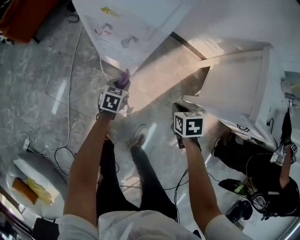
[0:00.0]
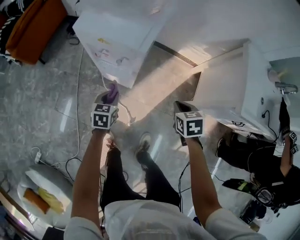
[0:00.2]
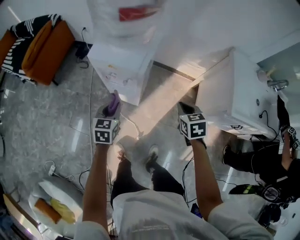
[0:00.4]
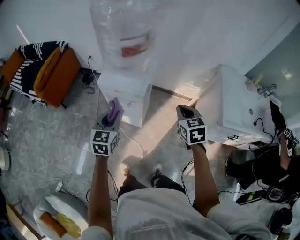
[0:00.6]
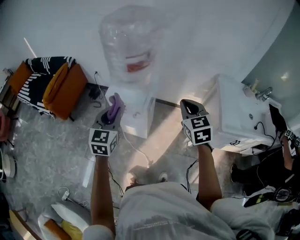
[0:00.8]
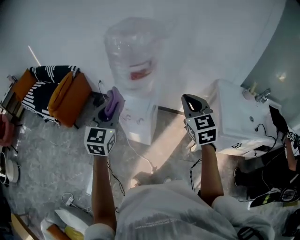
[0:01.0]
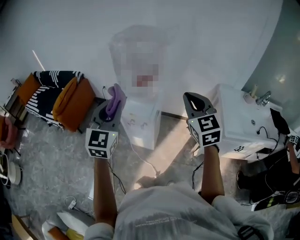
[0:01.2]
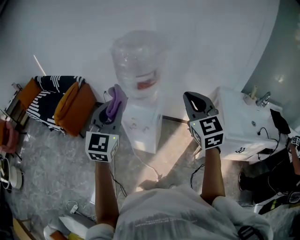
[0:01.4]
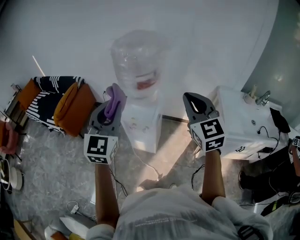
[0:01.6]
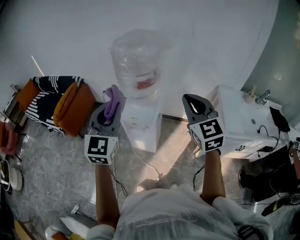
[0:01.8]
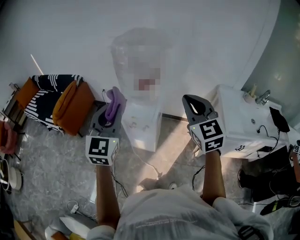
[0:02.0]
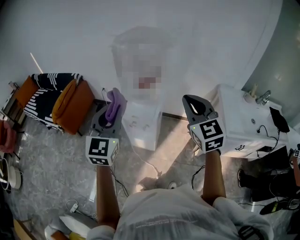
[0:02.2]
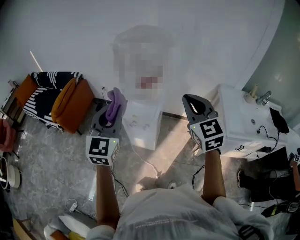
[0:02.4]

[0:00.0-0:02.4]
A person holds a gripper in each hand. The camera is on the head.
0:00.0 to 0:01.2: The grippers both shift upward by some 70 cm. The right gripper tips its fingers upward by approximately 60 degrees, while the left gripper tips its fingers upward by about 50 degrees.
0:01.2 to 0:02.4: The grippers move only a little.

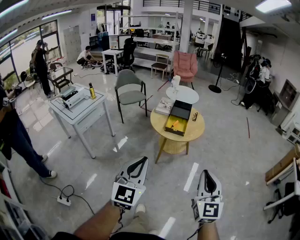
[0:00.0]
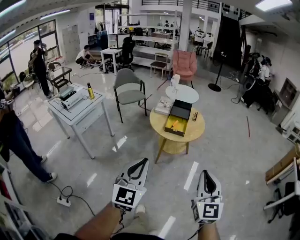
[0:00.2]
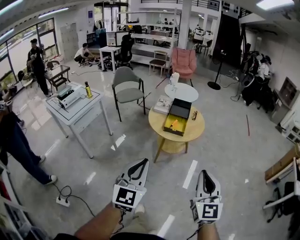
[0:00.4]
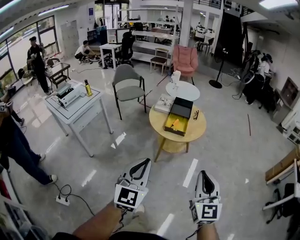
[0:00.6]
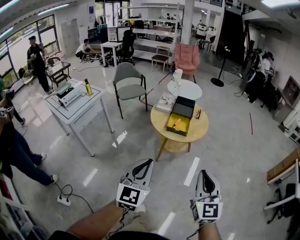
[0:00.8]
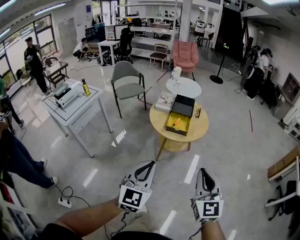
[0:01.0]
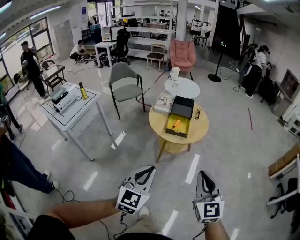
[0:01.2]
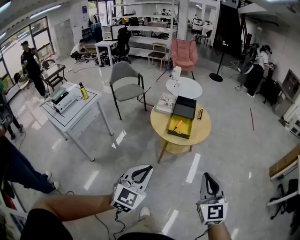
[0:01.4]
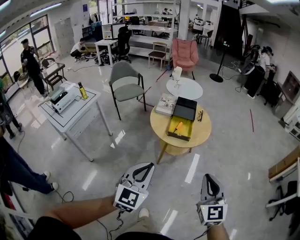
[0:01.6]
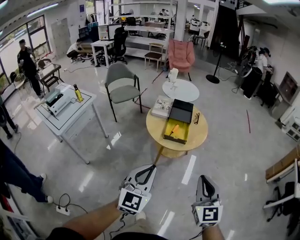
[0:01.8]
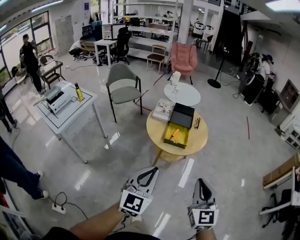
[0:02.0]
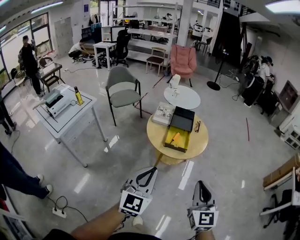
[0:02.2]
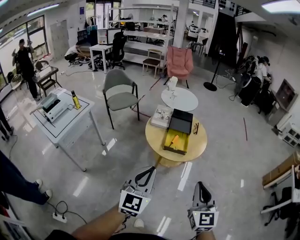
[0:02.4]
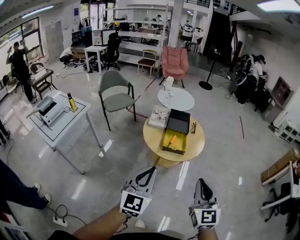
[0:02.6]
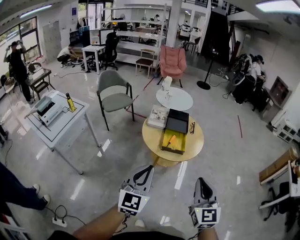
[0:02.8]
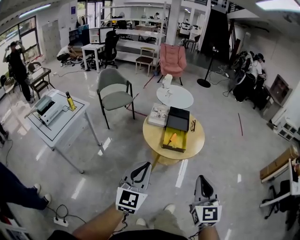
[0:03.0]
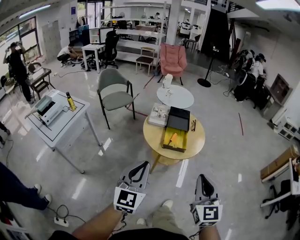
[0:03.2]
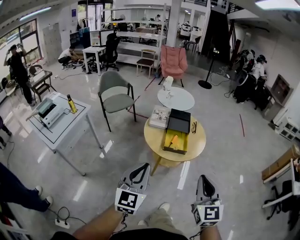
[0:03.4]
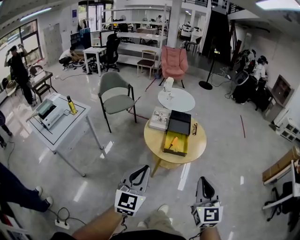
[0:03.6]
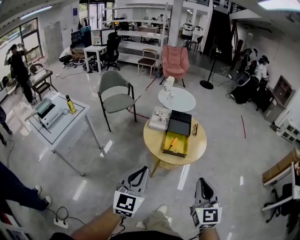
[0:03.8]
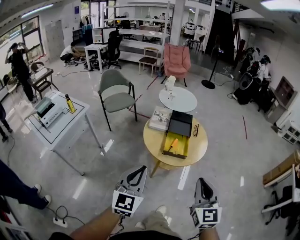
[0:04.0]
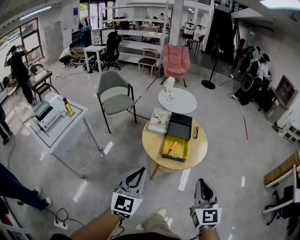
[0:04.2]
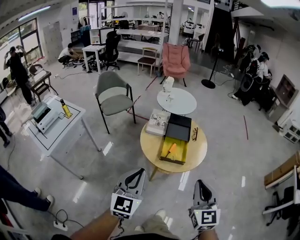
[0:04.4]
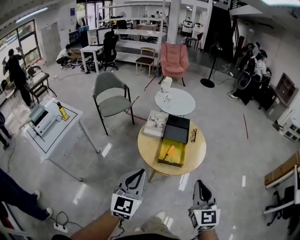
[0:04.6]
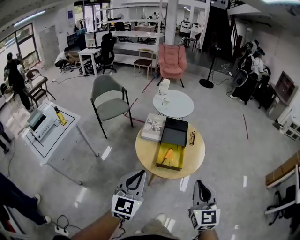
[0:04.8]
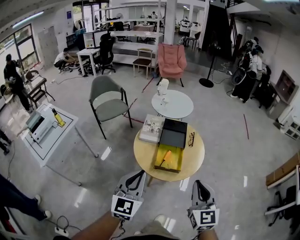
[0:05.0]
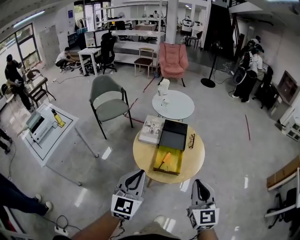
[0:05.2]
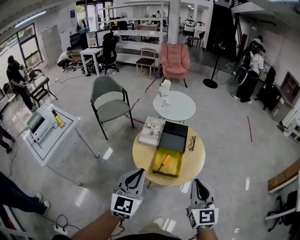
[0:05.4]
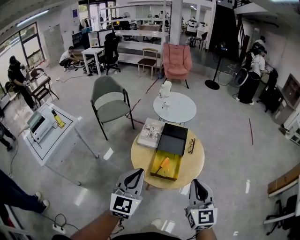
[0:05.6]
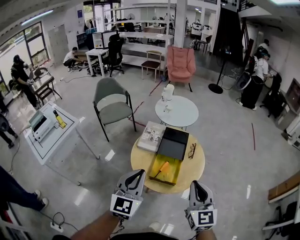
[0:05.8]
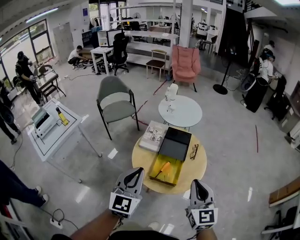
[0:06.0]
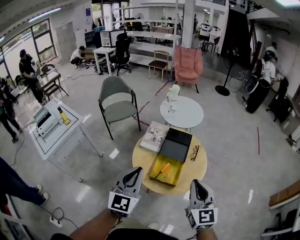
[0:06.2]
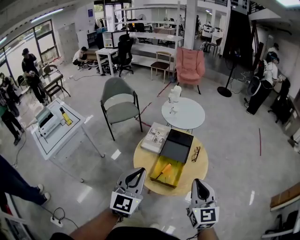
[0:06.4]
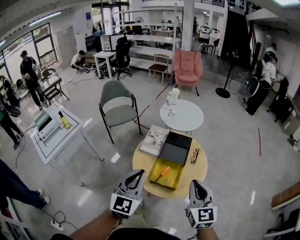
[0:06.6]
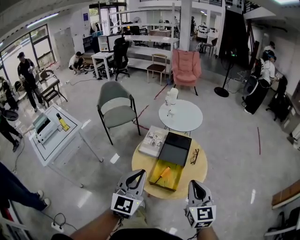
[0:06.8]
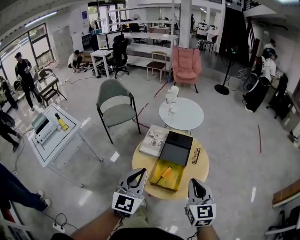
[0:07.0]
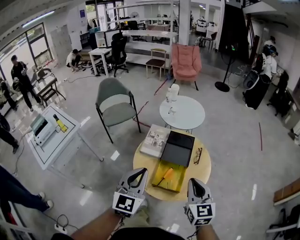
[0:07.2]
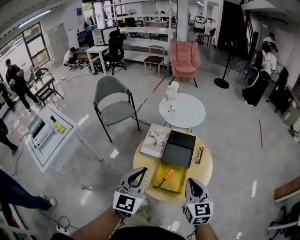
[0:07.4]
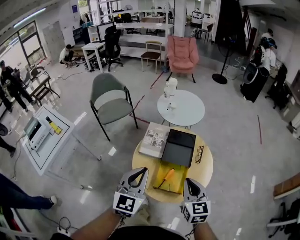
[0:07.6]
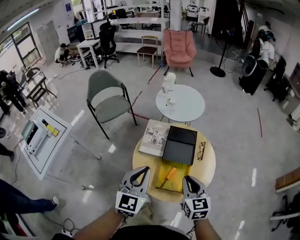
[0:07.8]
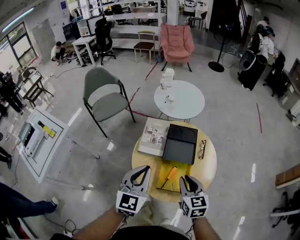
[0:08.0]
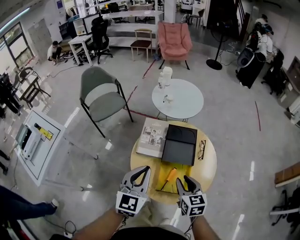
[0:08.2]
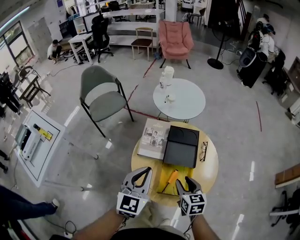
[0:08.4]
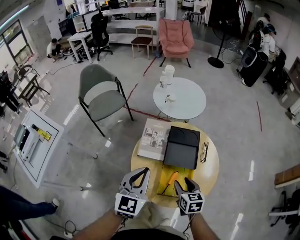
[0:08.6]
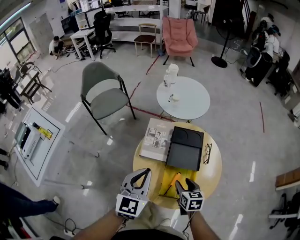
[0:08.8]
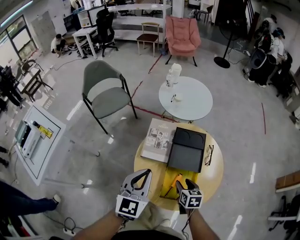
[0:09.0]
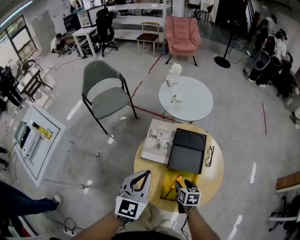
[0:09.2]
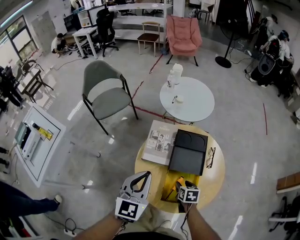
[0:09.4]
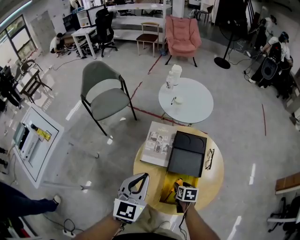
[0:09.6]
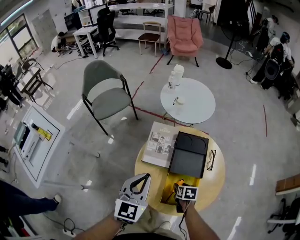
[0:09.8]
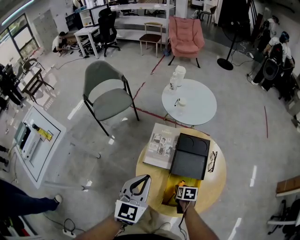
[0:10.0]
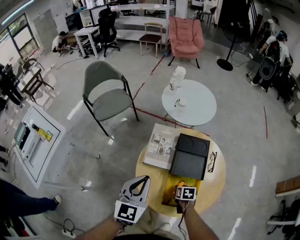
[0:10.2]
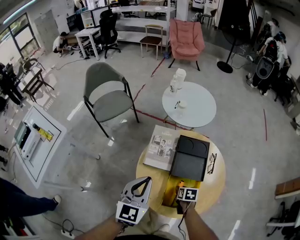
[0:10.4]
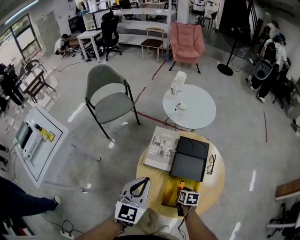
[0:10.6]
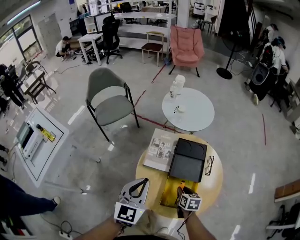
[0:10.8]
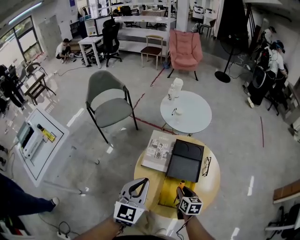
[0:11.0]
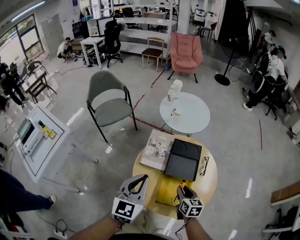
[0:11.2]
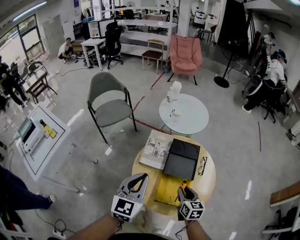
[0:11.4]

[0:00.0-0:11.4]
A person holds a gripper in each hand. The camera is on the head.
0:00.0 to 0:01.4: The left gripper heads forward and downward, covering about 15 cm. Meanwhile the right gripper moves forward, some 15 cm.
0:01.4 to 0:02.8: The two grippers go some 10 cm forward and to the left.
0:02.8 to 0:04.2: The grippers both shift forward by roughly 10 cm.
0:04.2 to 0:05.6: The left gripper shifts some 20 cm forward and to the right. Meanwhile the right gripper goes about 20 cm forward.
0:05.6 to 0:07.2: The two grippers go about 10 cm forward.
0:07.2 to 0:08.6: The left gripper heads forward and downward, covering about 15 cm. The right gripper shifts about 25 cm downward and forward, rotates roughly 30 degrees, and opens up.
0:08.6 to 0:10.0: The right gripper moves downward, approximately 15 cm, and rotates about 30 degrees; the left gripper shifts by approximately 5 cm.
0:10.0 to 0:11.4: The left gripper is displaced upward and backward by some 10 cm. The right gripper heads upward, covering roughly 20 cm, and tips its fingers upward by some 30 degrees.

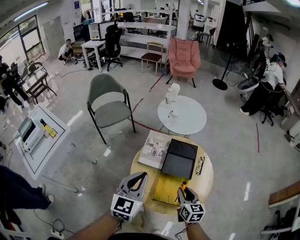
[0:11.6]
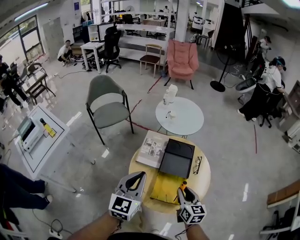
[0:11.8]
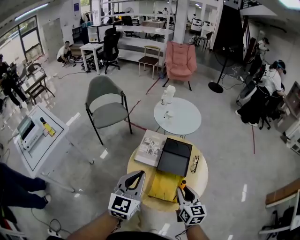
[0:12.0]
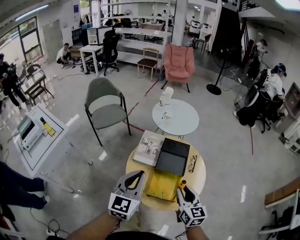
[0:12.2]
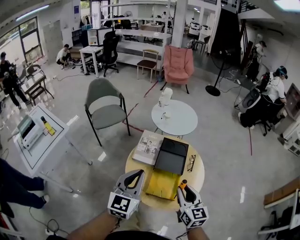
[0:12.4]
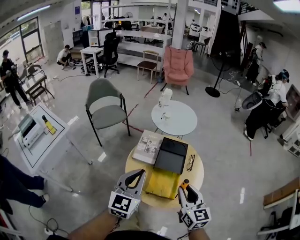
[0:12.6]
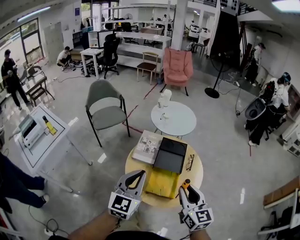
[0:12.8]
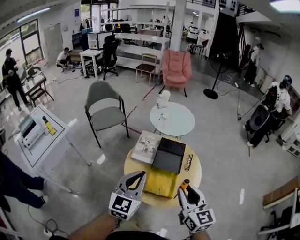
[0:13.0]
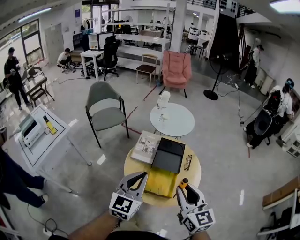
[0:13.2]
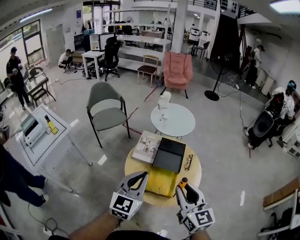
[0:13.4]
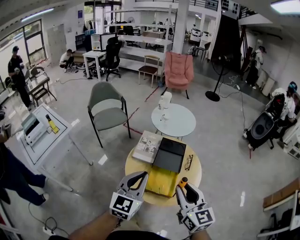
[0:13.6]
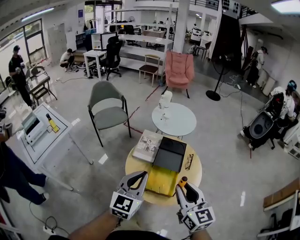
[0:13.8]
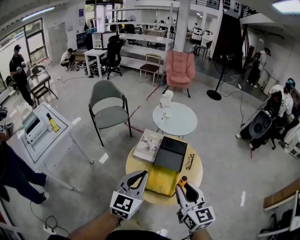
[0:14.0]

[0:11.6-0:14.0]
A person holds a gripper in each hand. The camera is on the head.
0:11.6 to 0:12.8: The right gripper goes roughly 20 cm upward and backward. The left gripper is displaced backward and upward by approximately 10 cm.
0:12.8 to 0:14.0: The right gripper ends up some 5 cm from where it was.

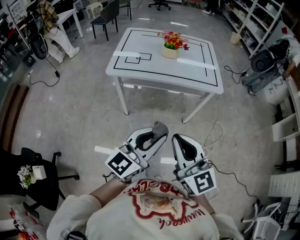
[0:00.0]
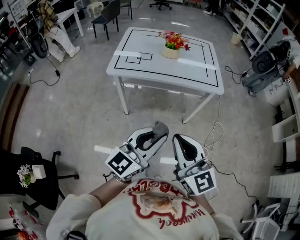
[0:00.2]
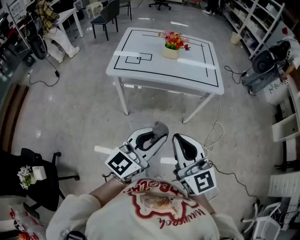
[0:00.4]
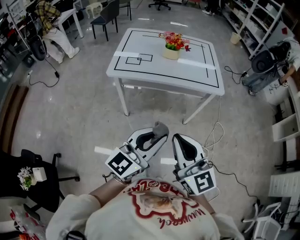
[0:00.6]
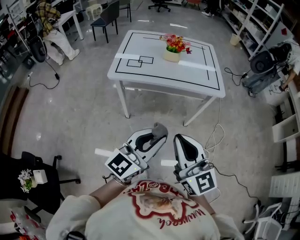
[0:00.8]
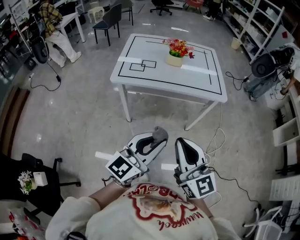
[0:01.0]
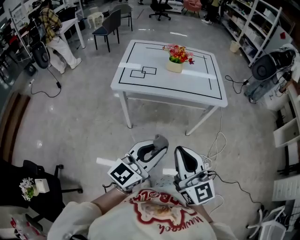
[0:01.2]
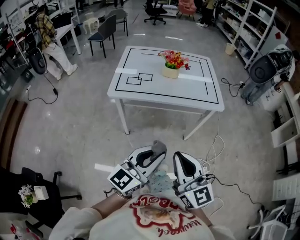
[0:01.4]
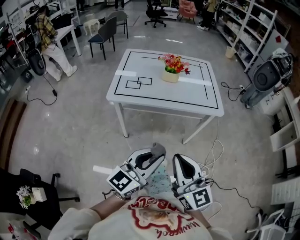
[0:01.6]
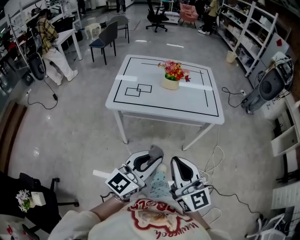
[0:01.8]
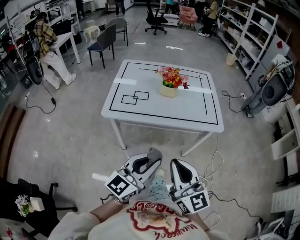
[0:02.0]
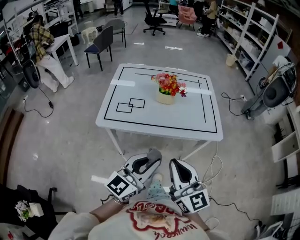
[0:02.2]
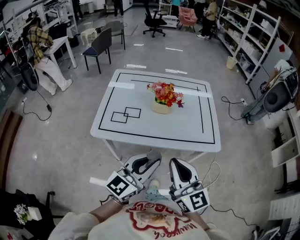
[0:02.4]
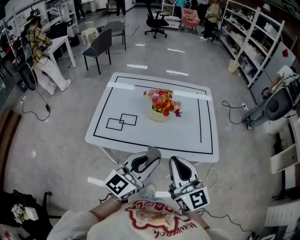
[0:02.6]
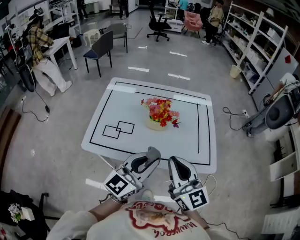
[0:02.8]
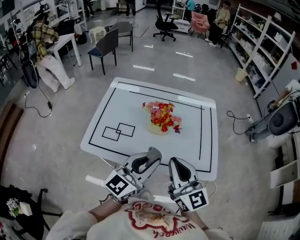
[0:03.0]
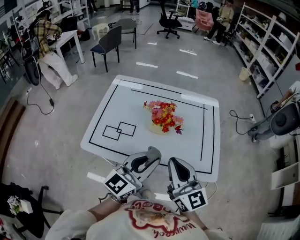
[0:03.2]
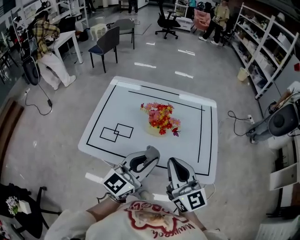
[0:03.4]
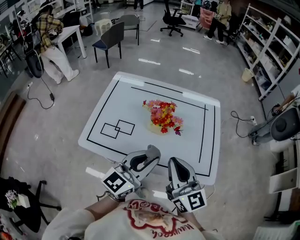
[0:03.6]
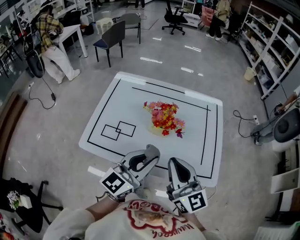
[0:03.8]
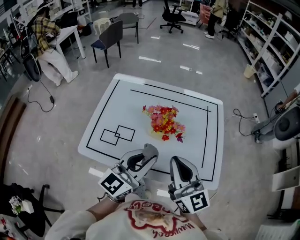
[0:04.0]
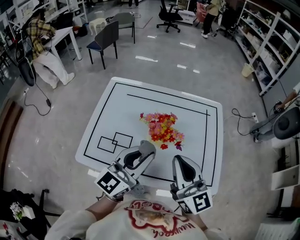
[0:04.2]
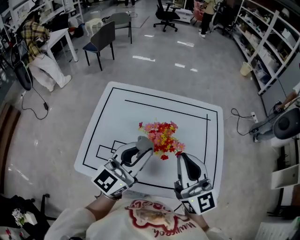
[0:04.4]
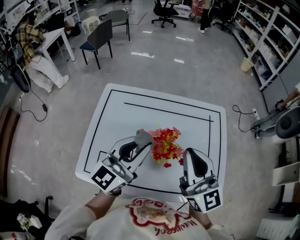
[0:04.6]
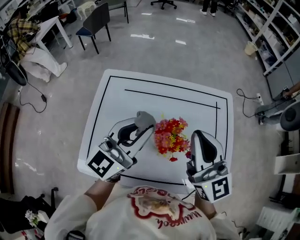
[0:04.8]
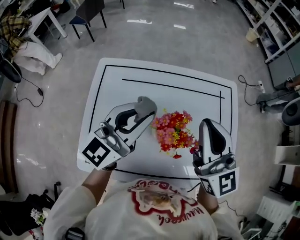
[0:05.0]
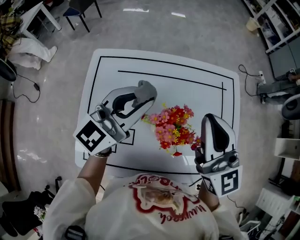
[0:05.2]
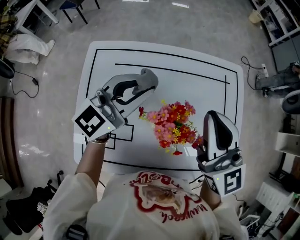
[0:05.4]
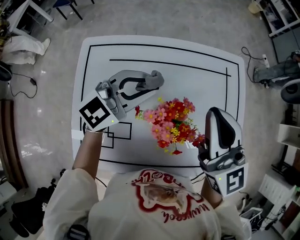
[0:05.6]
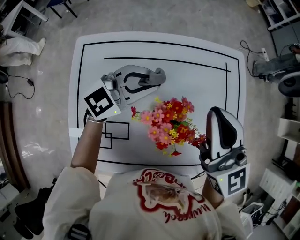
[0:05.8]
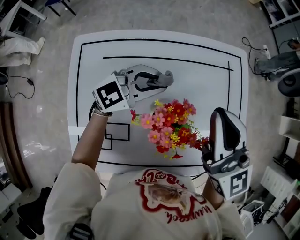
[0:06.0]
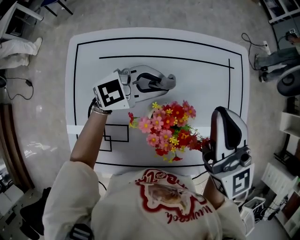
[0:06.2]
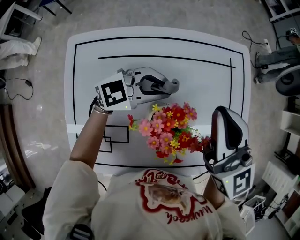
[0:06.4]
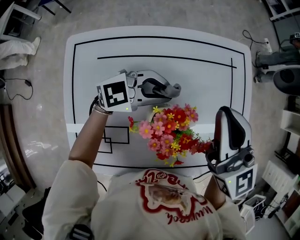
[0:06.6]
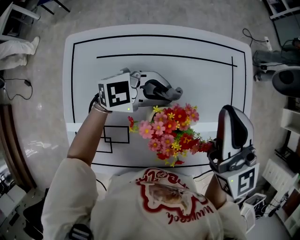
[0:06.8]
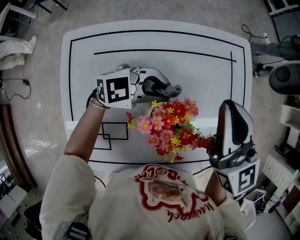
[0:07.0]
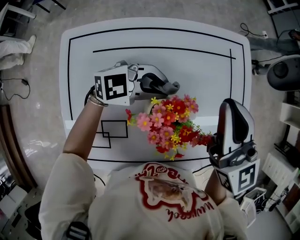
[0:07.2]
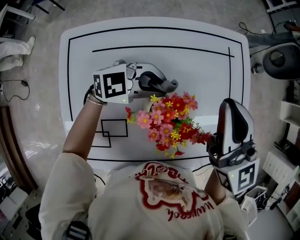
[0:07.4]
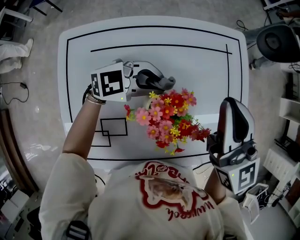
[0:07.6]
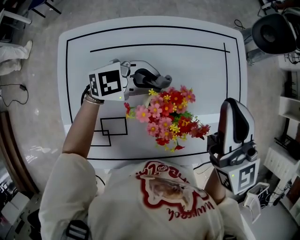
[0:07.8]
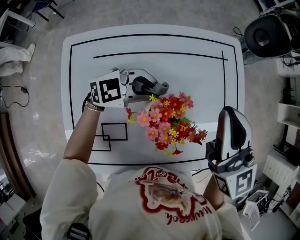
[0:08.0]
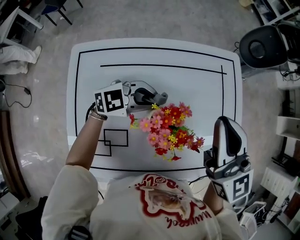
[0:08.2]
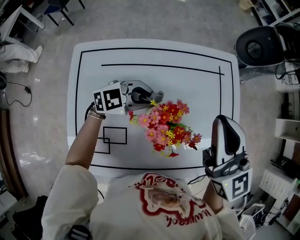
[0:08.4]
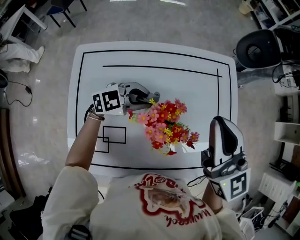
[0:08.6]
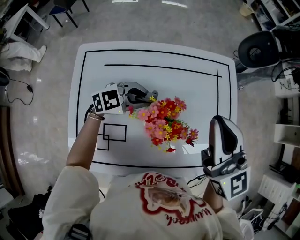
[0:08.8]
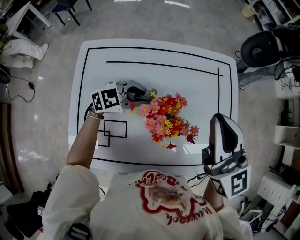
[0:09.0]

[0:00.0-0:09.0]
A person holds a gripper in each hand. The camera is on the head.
0:00.0 to 0:01.6: The left gripper changes place by some 5 cm. The right gripper moves roughly 5 cm.
0:01.6 to 0:03.0: The two grippers go about 35 cm forward.
0:03.0 to 0:04.4: Both grippers move forward, approximately 15 cm.
0:04.4 to 0:06.0: The left gripper shifts by some 25 cm, and swivels about 50 degrees; the right gripper shifts by some 15 cm.
0:06.0 to 0:07.6: The left gripper moves approximately 5 cm, and changes its angle by roughly 20 degrees.
0:07.6 to 0:09.0: The right gripper shifts by roughly 5 cm.
